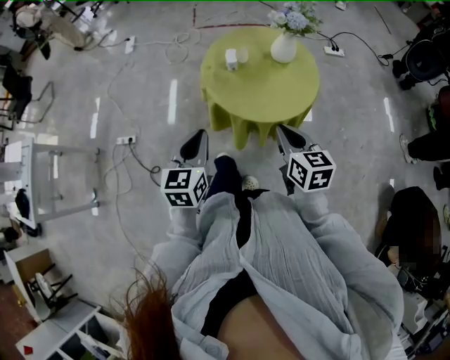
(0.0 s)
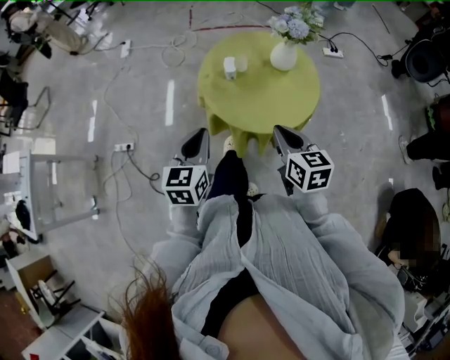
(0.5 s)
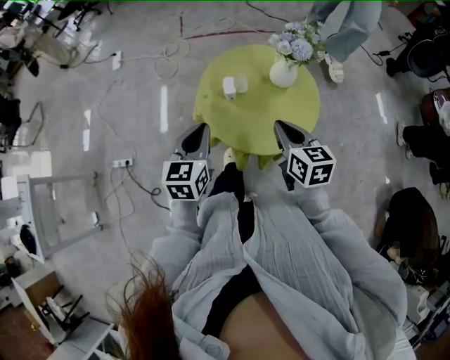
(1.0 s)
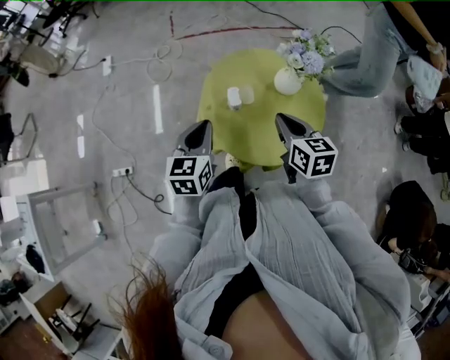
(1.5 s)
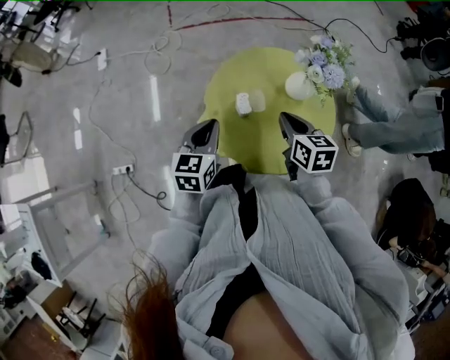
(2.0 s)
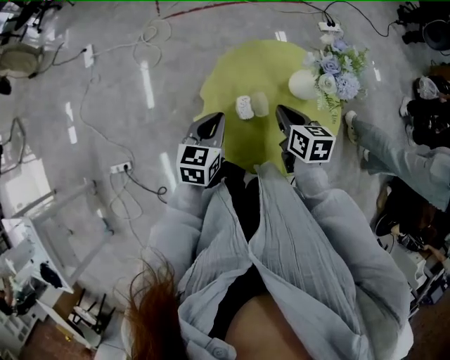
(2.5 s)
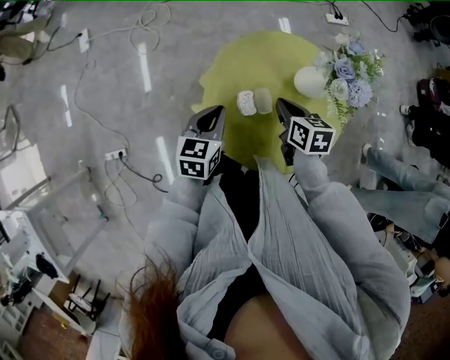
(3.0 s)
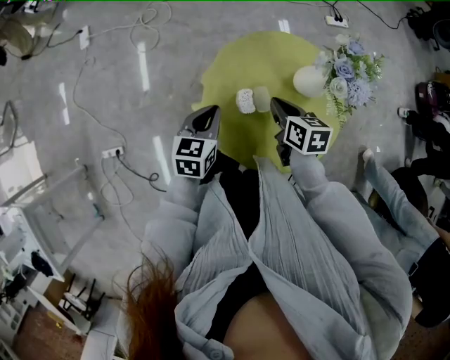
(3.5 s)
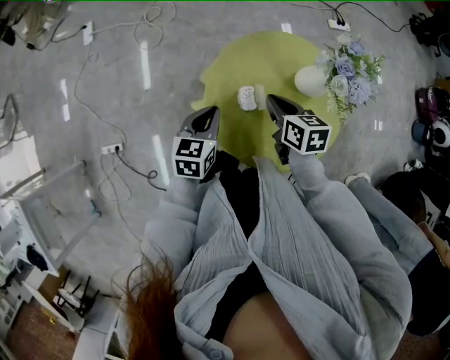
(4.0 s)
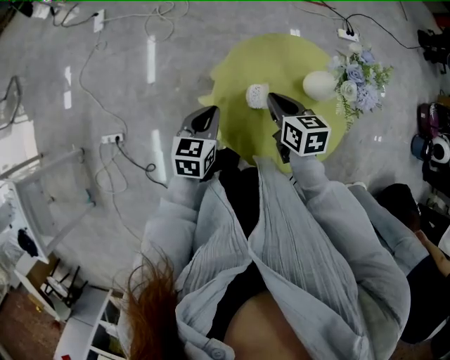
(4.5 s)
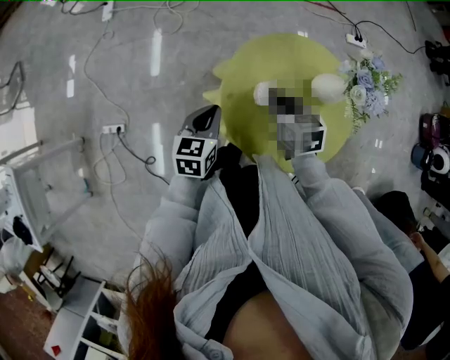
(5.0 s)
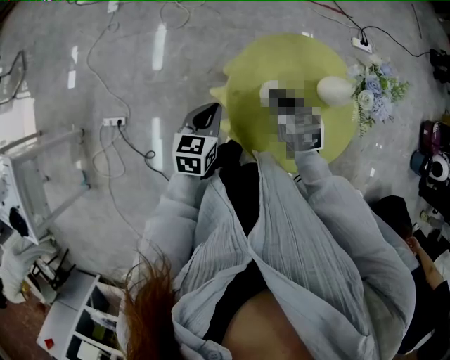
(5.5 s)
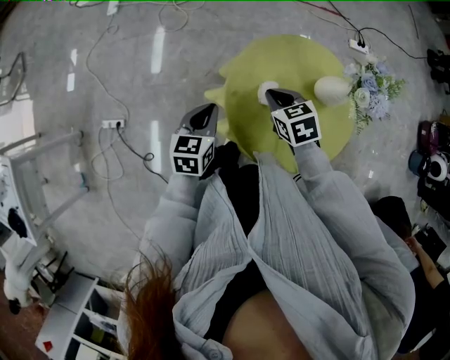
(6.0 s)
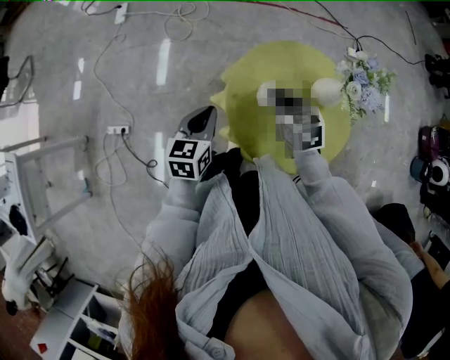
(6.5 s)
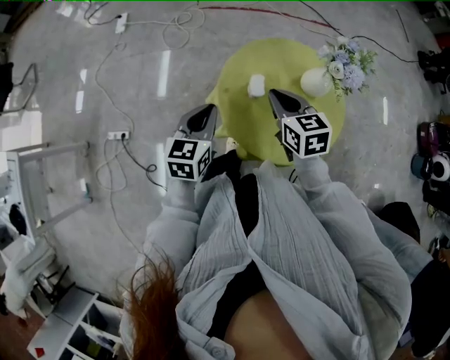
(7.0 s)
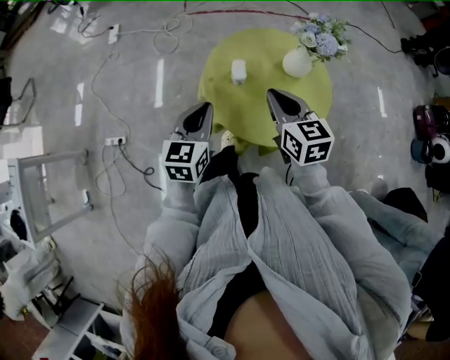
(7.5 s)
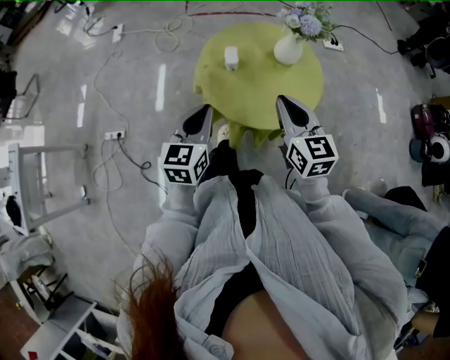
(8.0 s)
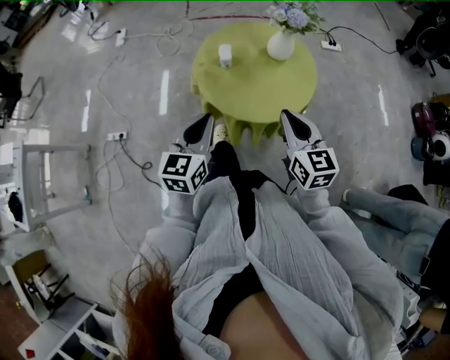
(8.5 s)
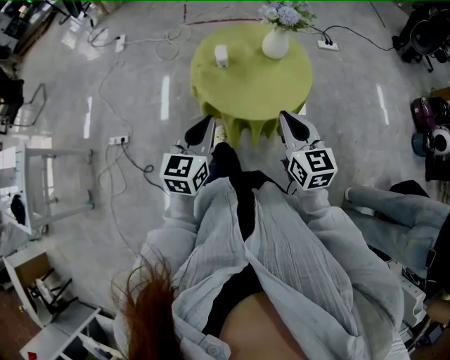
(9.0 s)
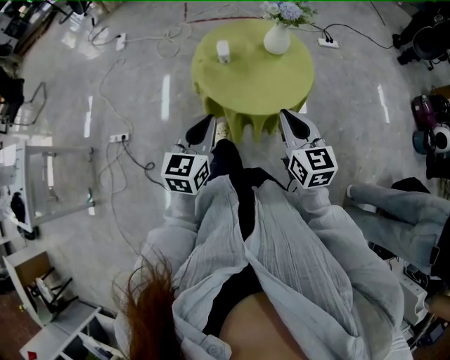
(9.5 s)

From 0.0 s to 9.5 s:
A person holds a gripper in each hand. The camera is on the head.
From 0.0 s to 2.0 s: The grippers both shift forward by some 25 cm.
From 2.0 s to 4.0 s: The right gripper heads forward and downward, covering roughly 5 cm. Meanwhile the left gripper travels downward by approximately 5 cm.
From 4.0 s to 5.5 s: The grippers both shift to the left by about 5 cm. The right gripper swivels some 30 degrees.
From 5.5 s to 7.5 s: The grippers both shift upward, backward and to the right by some 15 cm. The right gripper changes its angle by about 20 degrees.
From 7.5 s to 9.5 s: The left gripper heads backward, covering some 15 cm. The right gripper heads backward and to the right, covering about 20 cm.

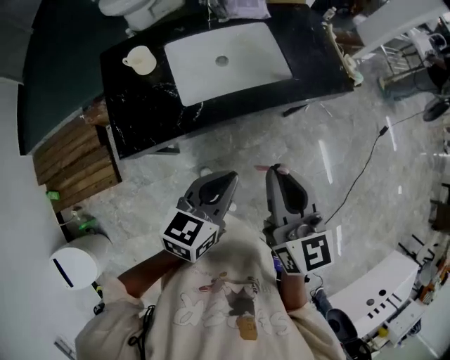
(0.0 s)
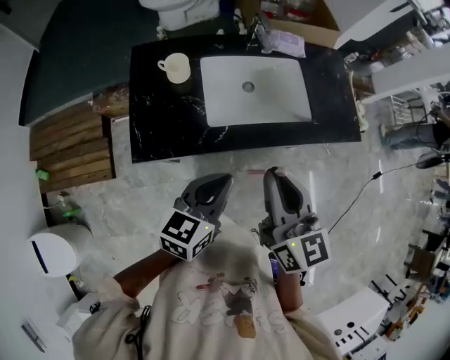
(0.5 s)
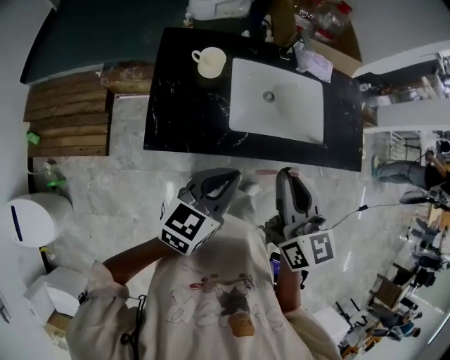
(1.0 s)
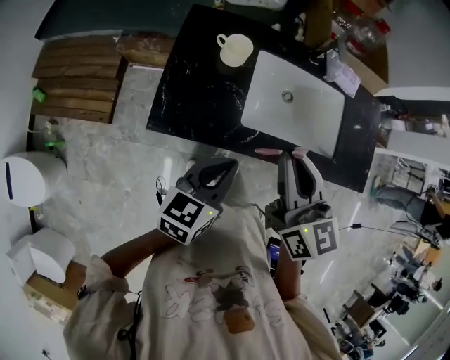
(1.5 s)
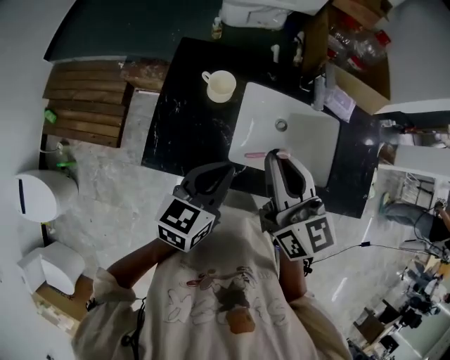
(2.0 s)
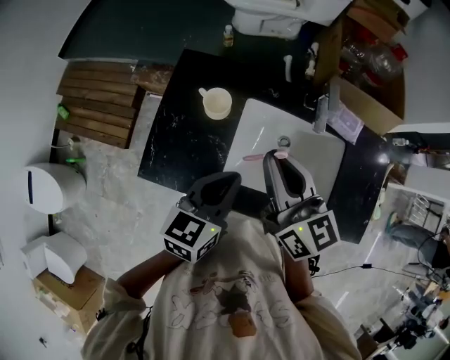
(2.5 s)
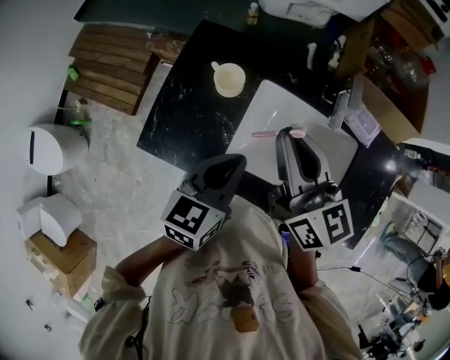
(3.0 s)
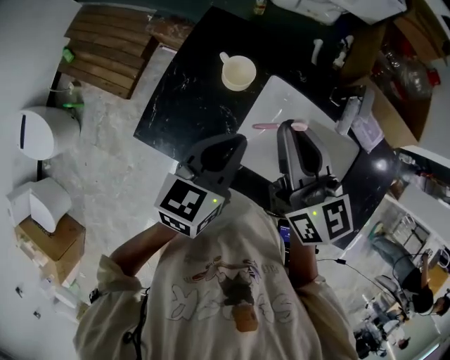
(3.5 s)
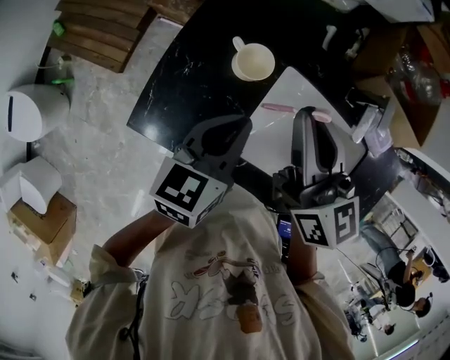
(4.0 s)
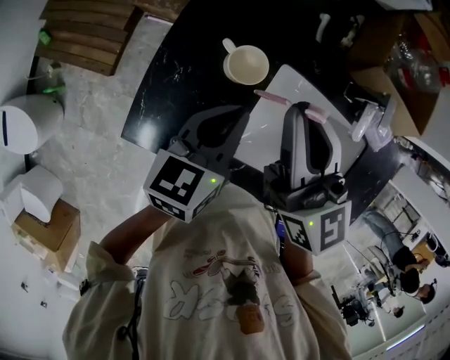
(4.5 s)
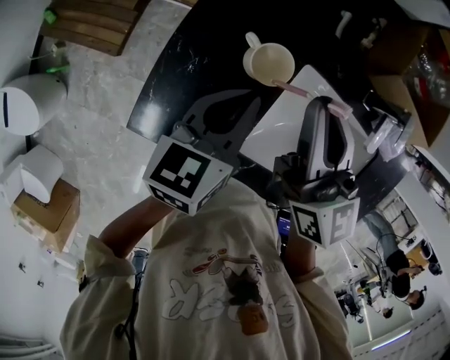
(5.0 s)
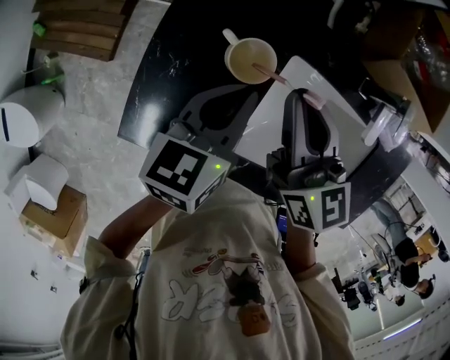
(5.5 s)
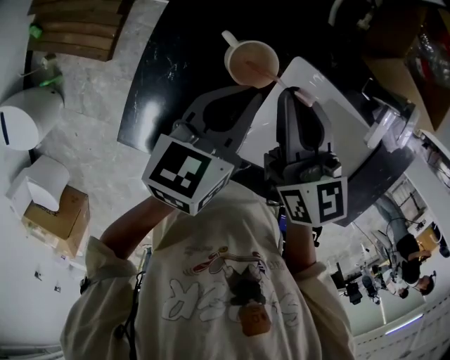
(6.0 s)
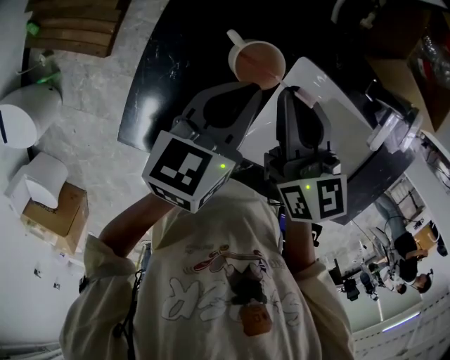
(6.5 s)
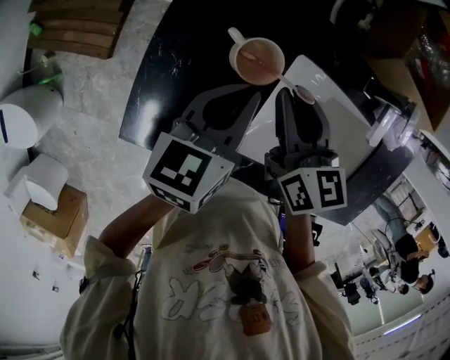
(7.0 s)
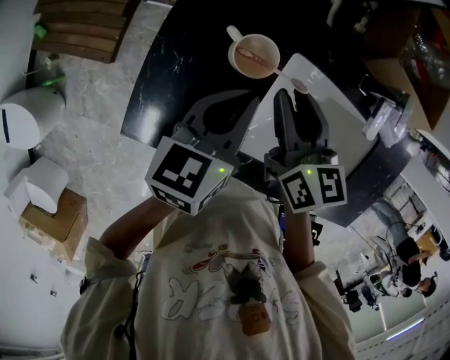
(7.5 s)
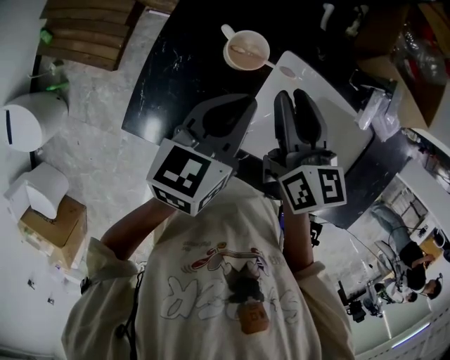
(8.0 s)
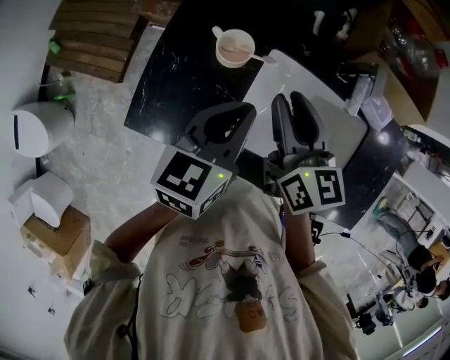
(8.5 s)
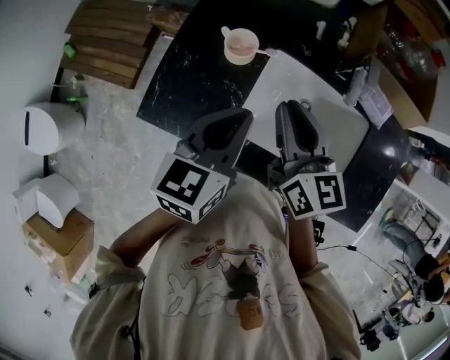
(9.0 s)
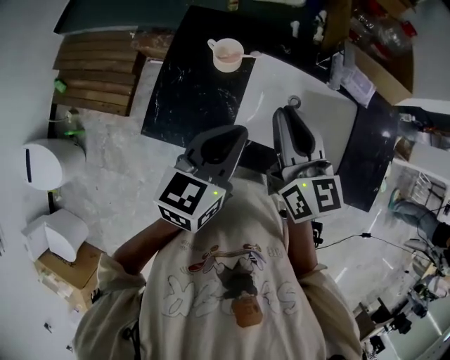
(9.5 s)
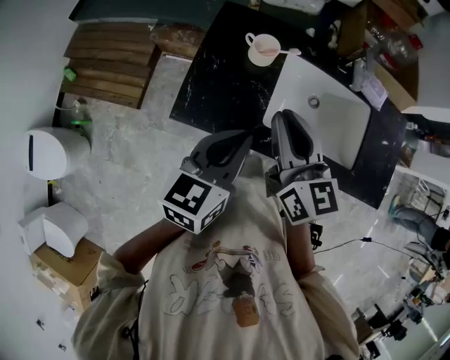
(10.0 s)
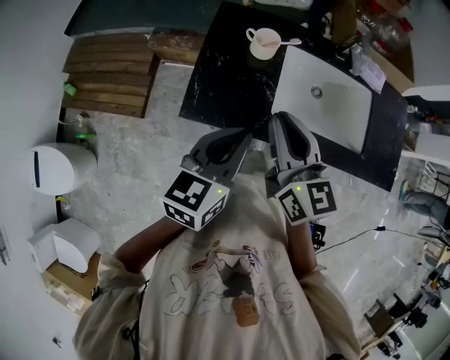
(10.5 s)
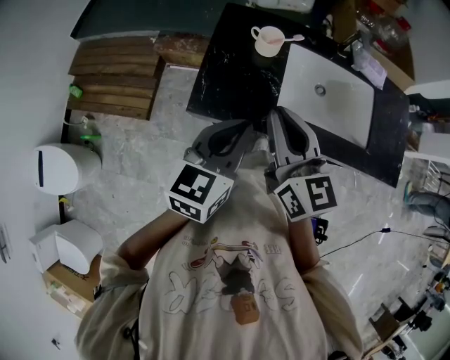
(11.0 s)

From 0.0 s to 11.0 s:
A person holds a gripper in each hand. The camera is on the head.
From 0.0 s to 2.0 s: The left gripper changes place by roughly 25 cm, and changes its angle by roughly 30 degrees; the right gripper ends up about 30 cm from where it was, and rotates some 30 degrees.
From 2.0 s to 3.5 s: Both grippers move forward, some 10 cm.
From 3.5 s to 5.5 s: The left gripper heads forward and downward, covering approximately 15 cm. The right gripper moves downward and forward, about 15 cm.
From 5.5 s to 7.5 s: The right gripper moves approximately 5 cm, and opens up.
From 7.5 s to 9.0 s: Both grippers travel together backward, upward and to the right, roughly 15 cm.
From 9.0 s to 11.0 s: The two grippers go about 25 cm backward and to the left.

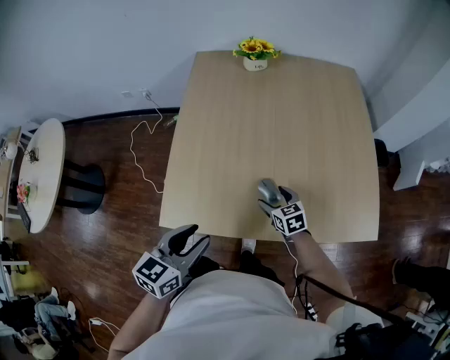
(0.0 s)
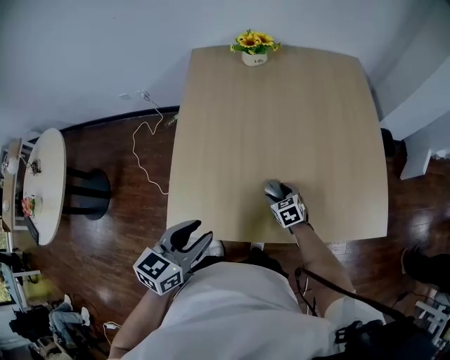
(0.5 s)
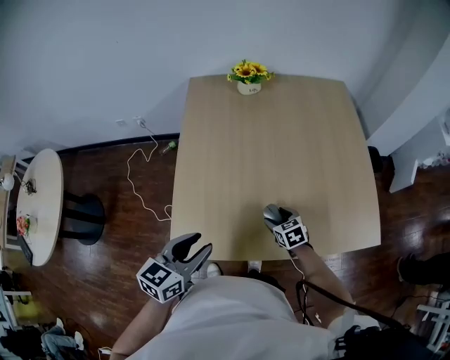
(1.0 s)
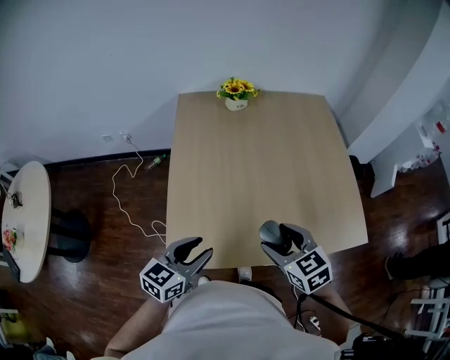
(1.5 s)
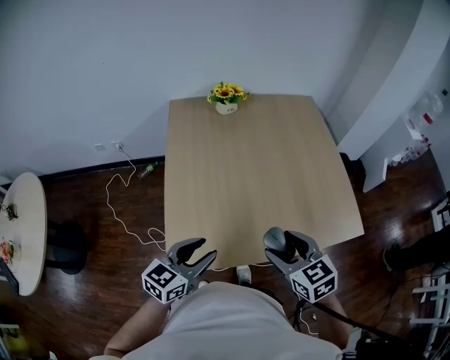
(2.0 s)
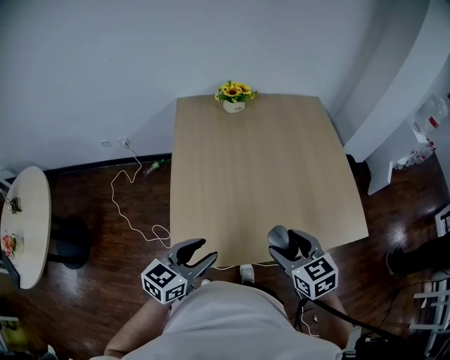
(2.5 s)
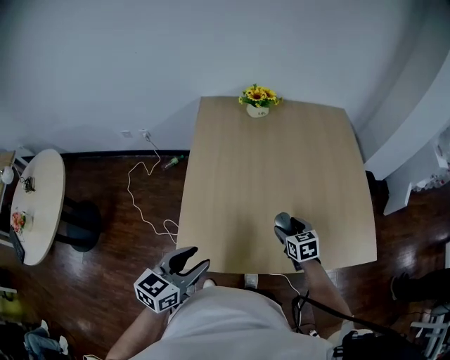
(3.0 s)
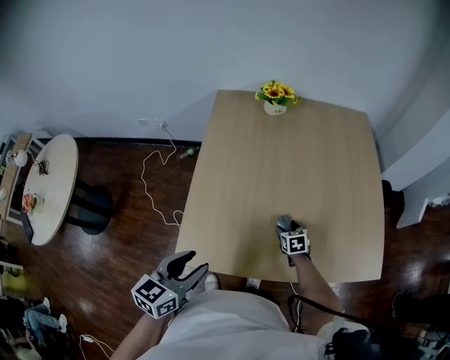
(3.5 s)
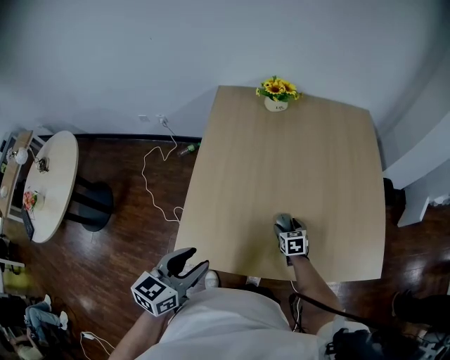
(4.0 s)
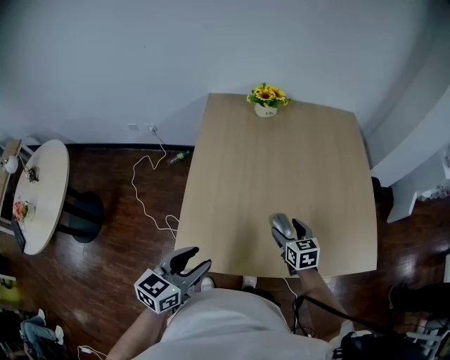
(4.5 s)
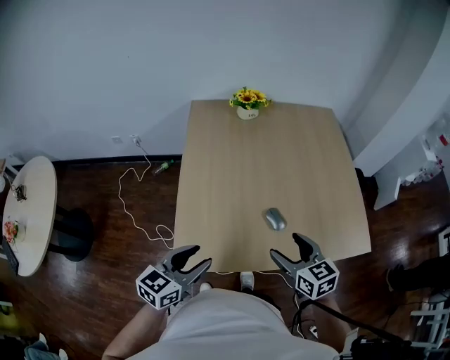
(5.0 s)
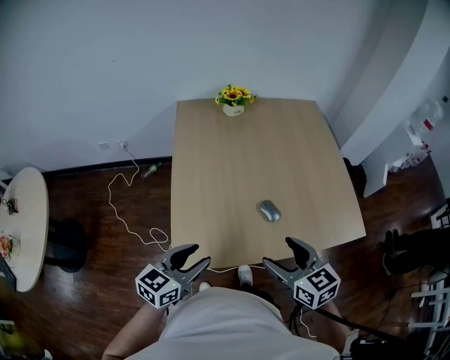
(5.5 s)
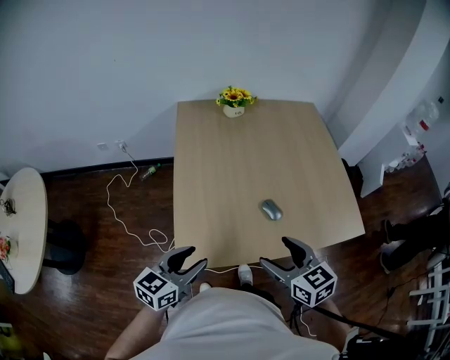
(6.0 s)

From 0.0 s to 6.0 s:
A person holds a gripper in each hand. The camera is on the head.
From 0.0 s to 2.0 s: The right gripper moves upward, approximately 25 cm. Meanwhile the left gripper shifts by about 5 cm, and rotates some 20 degrees.
From 2.0 s to 4.0 s: The left gripper swivels some 20 degrees. The right gripper travels downward and forward by approximately 35 cm.
From 4.0 s to 6.0 s: The right gripper is displaced upward and backward by roughly 40 cm, and changes its angle by roughly 20 degrees. Meanwhile the left gripper goes about 5 cm to the left, and swivels about 20 degrees.
